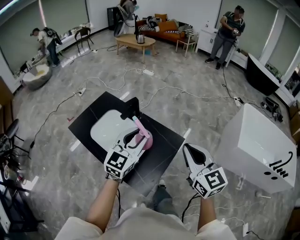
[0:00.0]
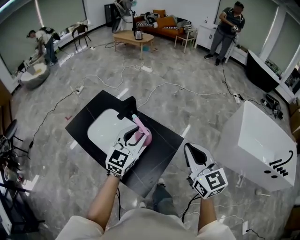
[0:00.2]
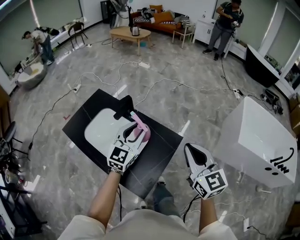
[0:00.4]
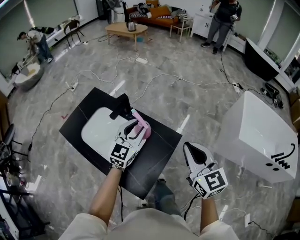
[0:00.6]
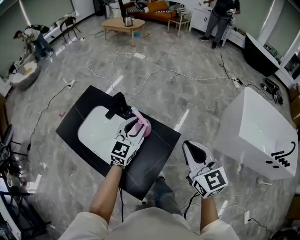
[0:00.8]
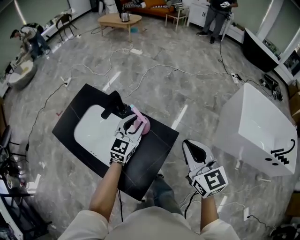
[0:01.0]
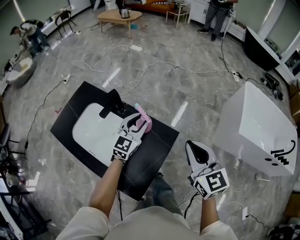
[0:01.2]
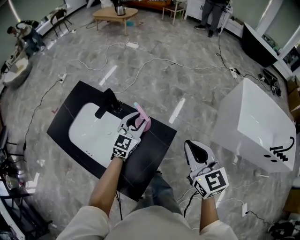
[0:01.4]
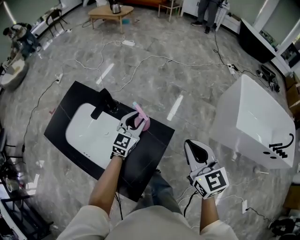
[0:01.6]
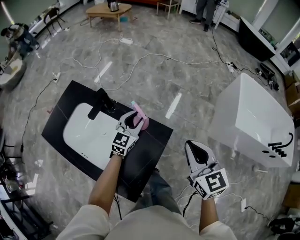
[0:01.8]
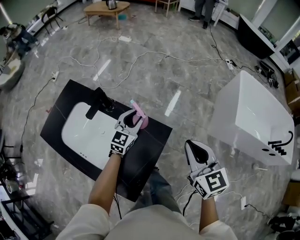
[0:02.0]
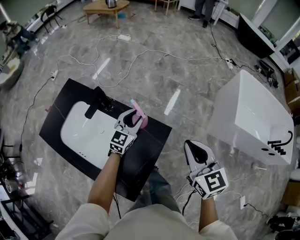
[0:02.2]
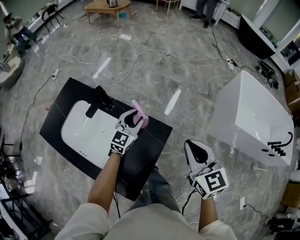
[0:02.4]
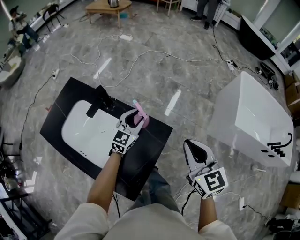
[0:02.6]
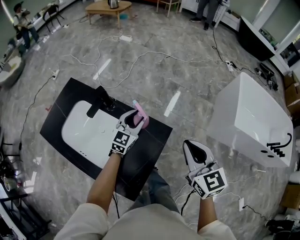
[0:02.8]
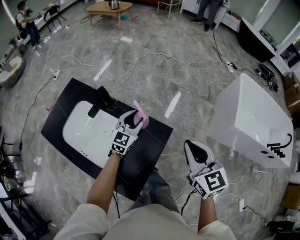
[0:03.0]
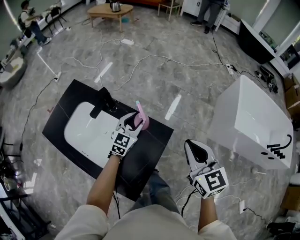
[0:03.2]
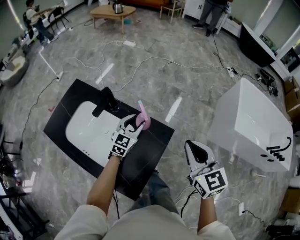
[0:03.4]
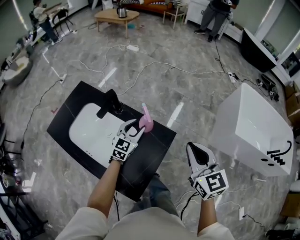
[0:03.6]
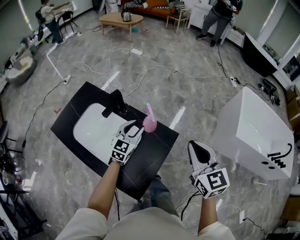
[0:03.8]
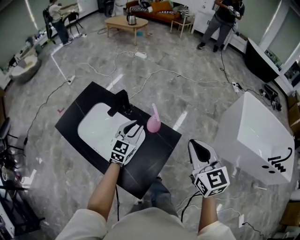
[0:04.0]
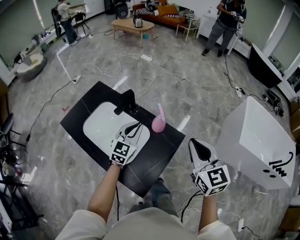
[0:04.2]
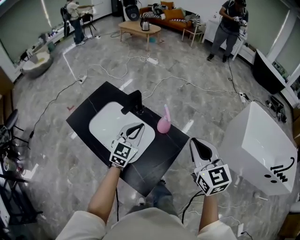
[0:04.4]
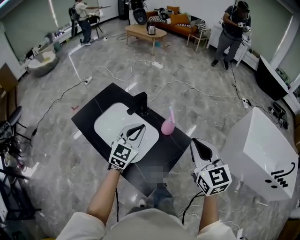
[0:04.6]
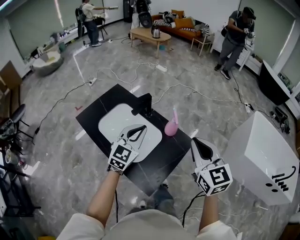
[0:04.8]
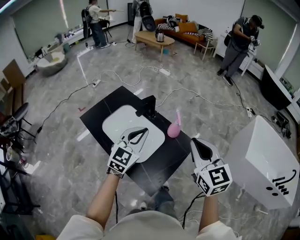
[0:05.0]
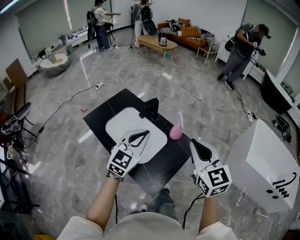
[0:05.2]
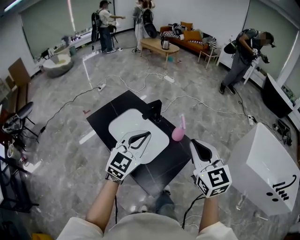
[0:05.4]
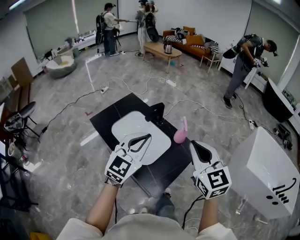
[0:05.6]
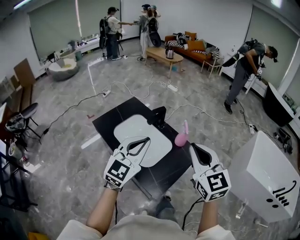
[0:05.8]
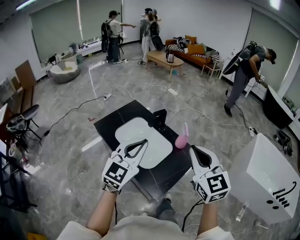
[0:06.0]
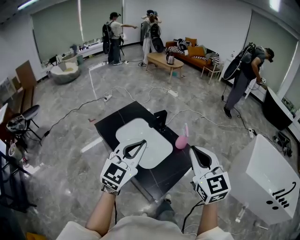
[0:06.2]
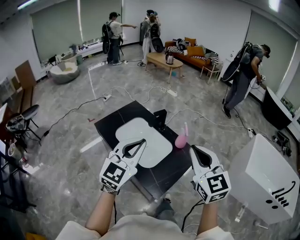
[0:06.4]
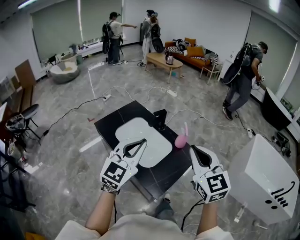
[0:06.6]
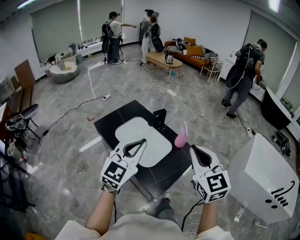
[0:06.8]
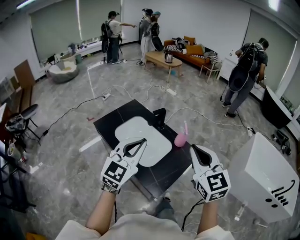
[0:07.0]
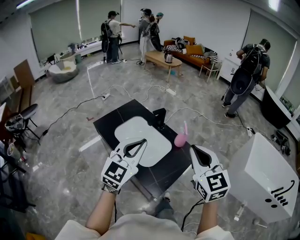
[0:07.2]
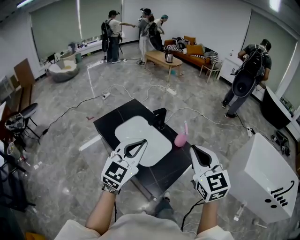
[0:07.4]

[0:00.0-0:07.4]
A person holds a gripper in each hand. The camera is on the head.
0:00.0 to 0:01.4: The right gripper travels forward, downward and to the right by about 15 cm. The left gripper moves forward and downward, roughly 25 cm.
0:01.4 to 0:03.0: The left gripper goes roughly 5 cm downward.
0:03.0 to 0:04.4: The right gripper travels to the left, upward and backward by approximately 10 cm; the left gripper travels backward, upward and to the left by about 20 cm, and closes its fingers.
0:04.4 to 0:06.0: The left gripper moves backward, upward and to the left, approximately 30 cm. Meanwhile the right gripper goes about 20 cm backward, to the left and upward.
0:06.0 to 0:07.4: The grippers stay close to where they were, moving slightly.

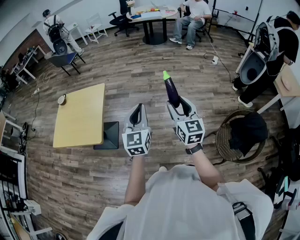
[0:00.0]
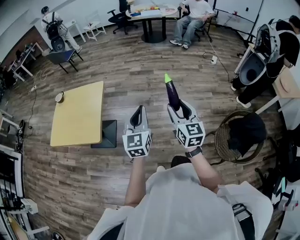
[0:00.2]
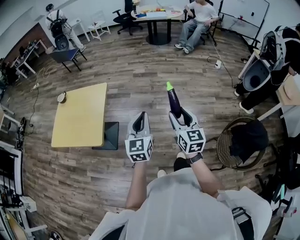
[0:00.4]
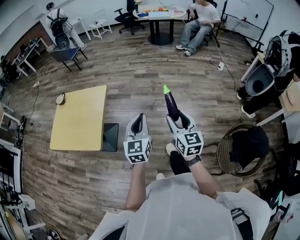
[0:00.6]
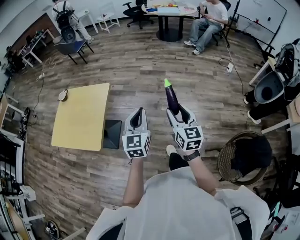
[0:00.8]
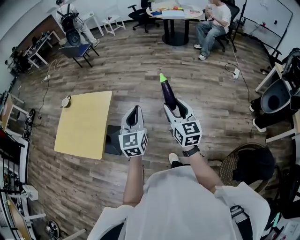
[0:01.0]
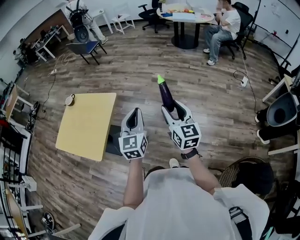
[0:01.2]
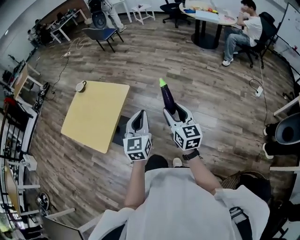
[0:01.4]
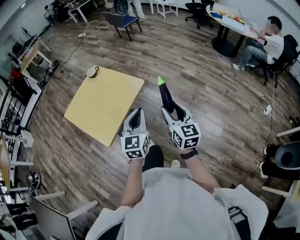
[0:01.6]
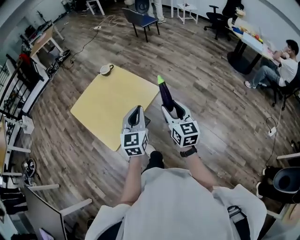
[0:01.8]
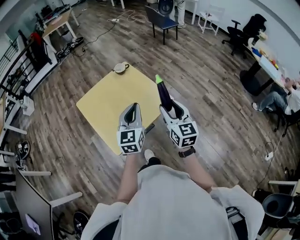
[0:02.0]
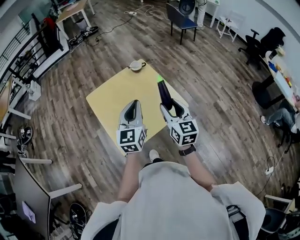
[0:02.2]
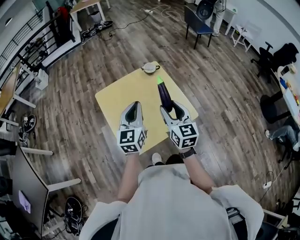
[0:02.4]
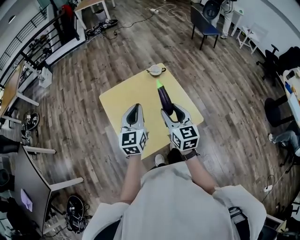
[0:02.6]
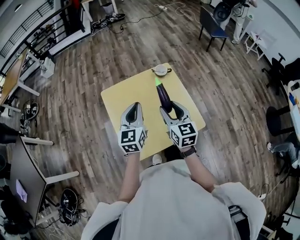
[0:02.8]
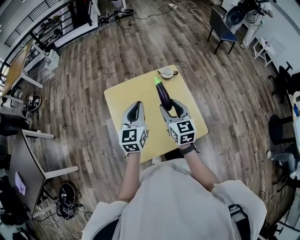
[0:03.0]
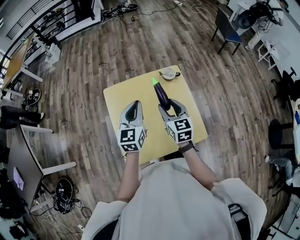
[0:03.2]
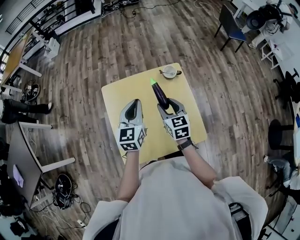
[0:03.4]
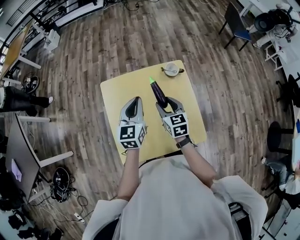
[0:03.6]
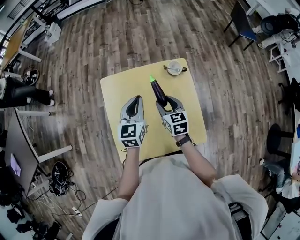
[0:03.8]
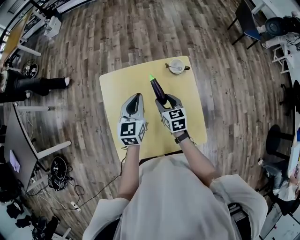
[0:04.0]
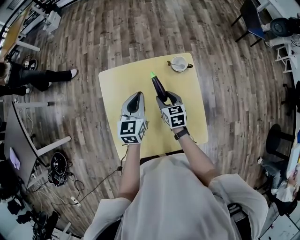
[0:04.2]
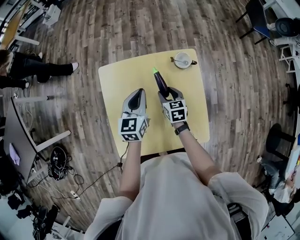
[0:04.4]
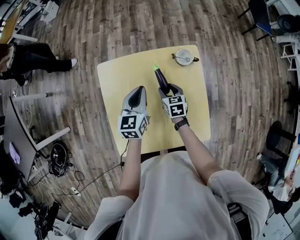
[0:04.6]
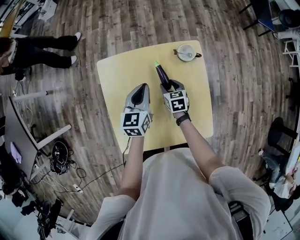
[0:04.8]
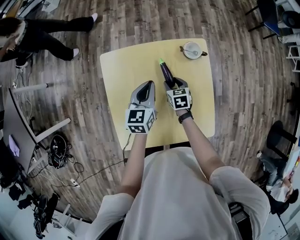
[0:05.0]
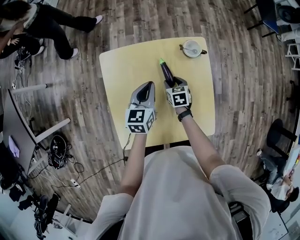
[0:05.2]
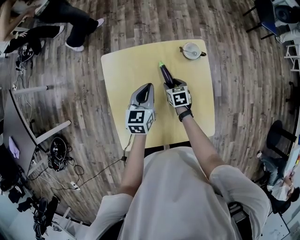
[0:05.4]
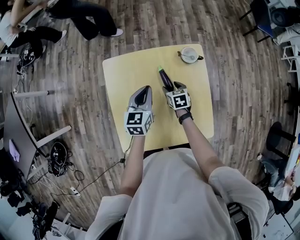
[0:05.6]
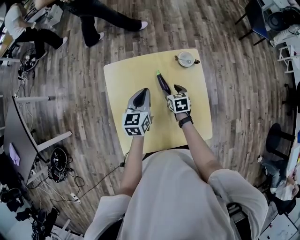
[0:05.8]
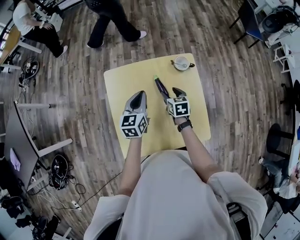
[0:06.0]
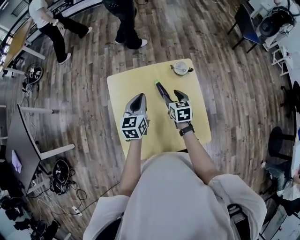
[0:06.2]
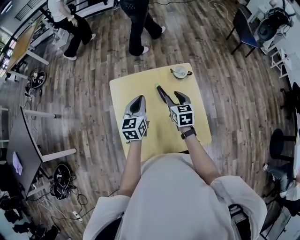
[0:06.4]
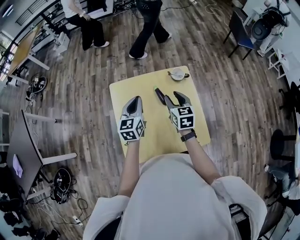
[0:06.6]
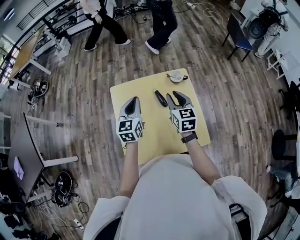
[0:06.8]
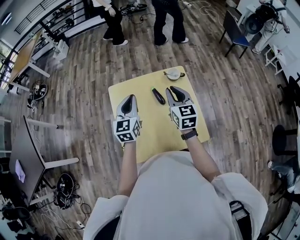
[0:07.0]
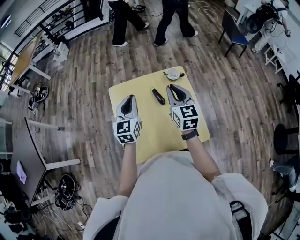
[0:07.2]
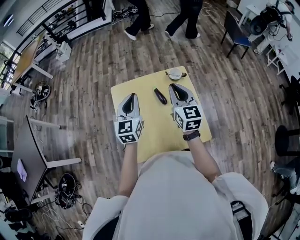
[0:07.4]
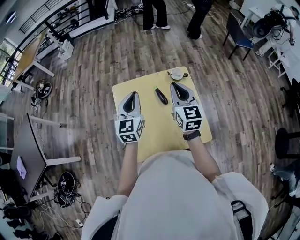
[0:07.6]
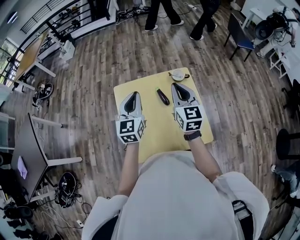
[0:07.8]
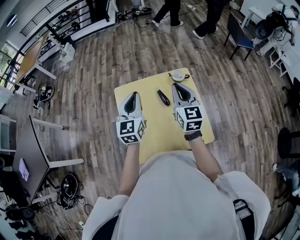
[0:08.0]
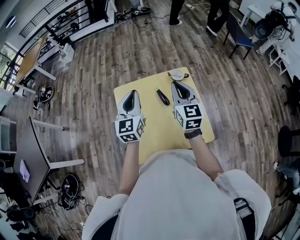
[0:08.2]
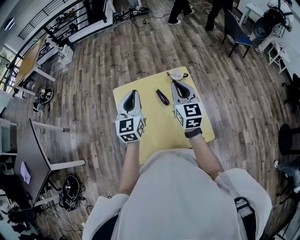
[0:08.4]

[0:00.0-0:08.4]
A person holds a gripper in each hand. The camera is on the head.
0:00.0 to 0:01.4: The right gripper shifts by about 30 cm, and swivels some 30 degrees; the left gripper shifts by about 25 cm, and rotates about 20 degrees.
0:01.4 to 0:02.8: Both grippers are carried roughly 60 cm. The left gripper rotates approximately 50 degrees; the right gripper rotates some 50 degrees.
0:02.8 to 0:04.2: The left gripper goes about 20 cm forward and downward, while the right gripper moves downward and forward, roughly 25 cm, and swivels approximately 30 degrees.
0:04.2 to 0:05.6: The left gripper goes some 5 cm downward; the right gripper is displaced downward by approximately 10 cm.
0:05.6 to 0:07.0: The left gripper moves upward, roughly 15 cm, while the right gripper travels upward by some 30 cm, tips its fingers upward by some 40 degrees, and closes.
0:07.0 to 0:08.4: The two grippers go some 5 cm upward.

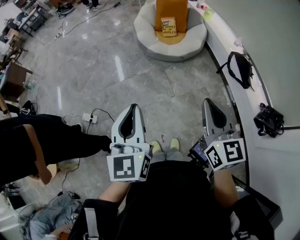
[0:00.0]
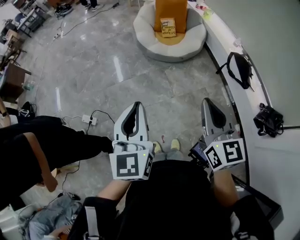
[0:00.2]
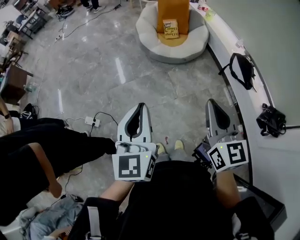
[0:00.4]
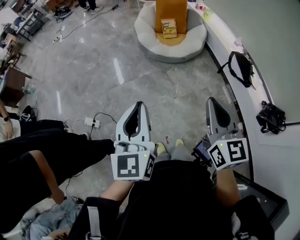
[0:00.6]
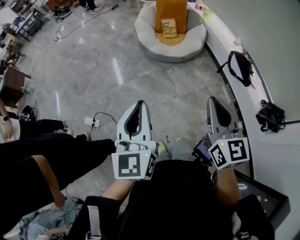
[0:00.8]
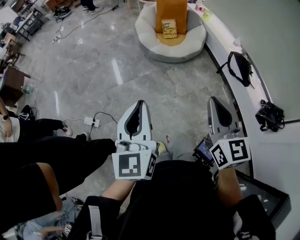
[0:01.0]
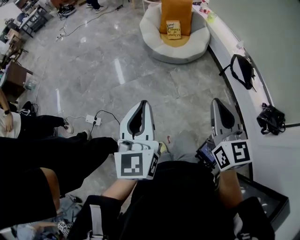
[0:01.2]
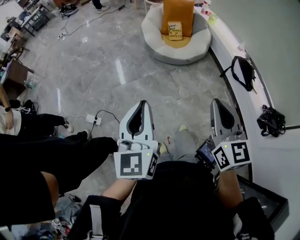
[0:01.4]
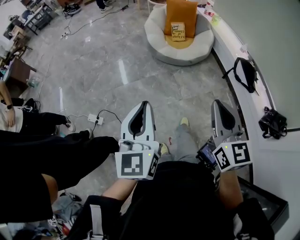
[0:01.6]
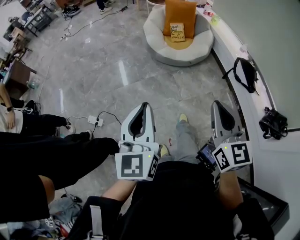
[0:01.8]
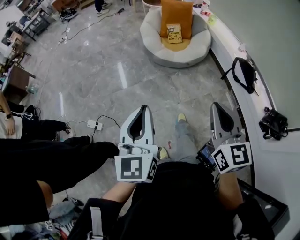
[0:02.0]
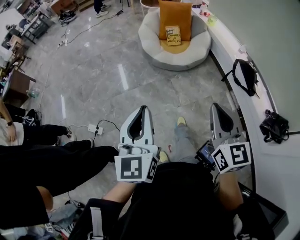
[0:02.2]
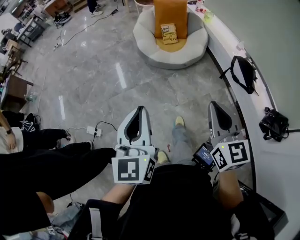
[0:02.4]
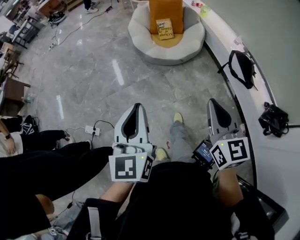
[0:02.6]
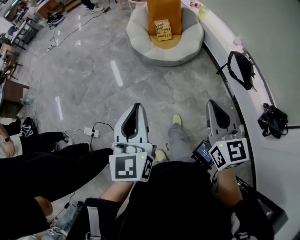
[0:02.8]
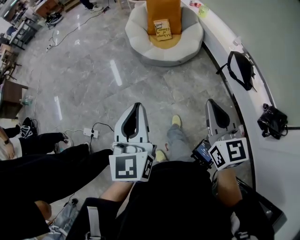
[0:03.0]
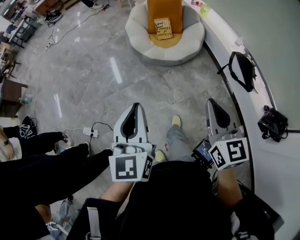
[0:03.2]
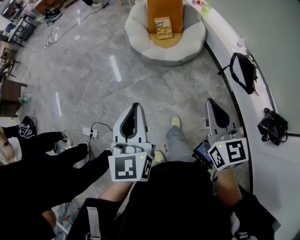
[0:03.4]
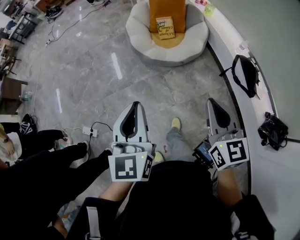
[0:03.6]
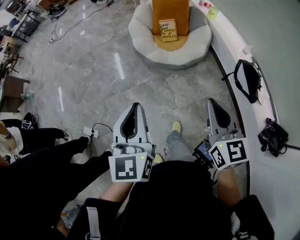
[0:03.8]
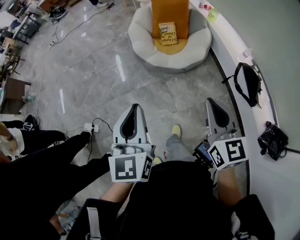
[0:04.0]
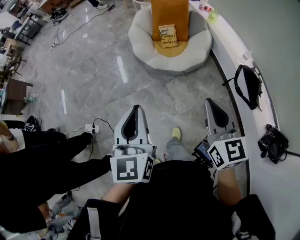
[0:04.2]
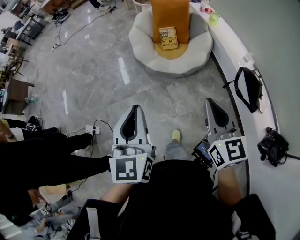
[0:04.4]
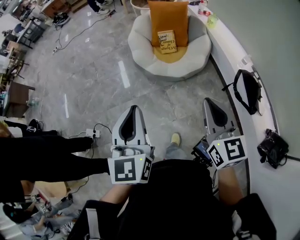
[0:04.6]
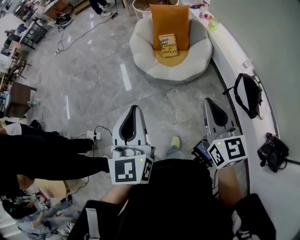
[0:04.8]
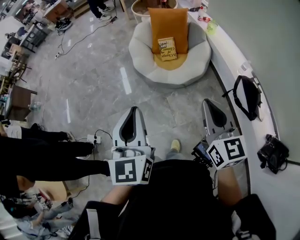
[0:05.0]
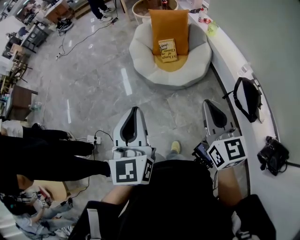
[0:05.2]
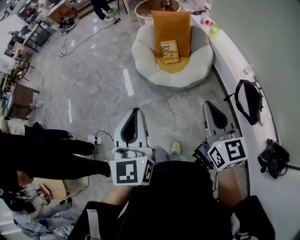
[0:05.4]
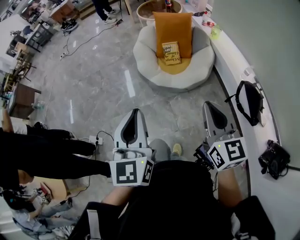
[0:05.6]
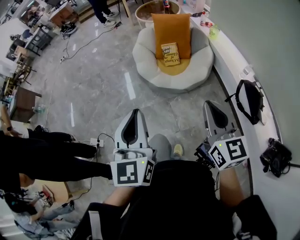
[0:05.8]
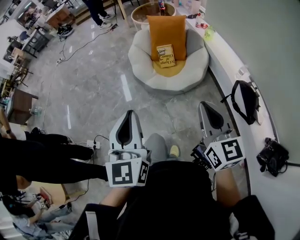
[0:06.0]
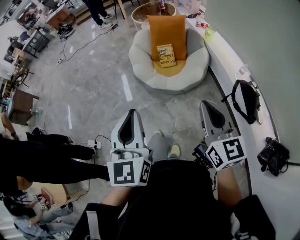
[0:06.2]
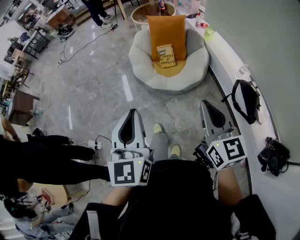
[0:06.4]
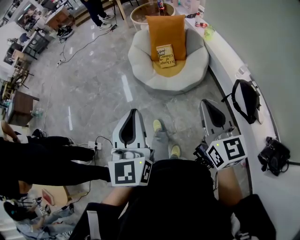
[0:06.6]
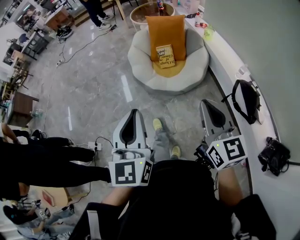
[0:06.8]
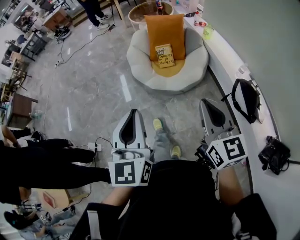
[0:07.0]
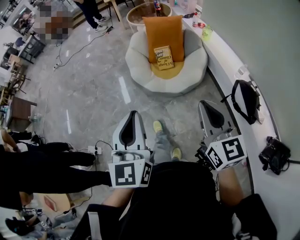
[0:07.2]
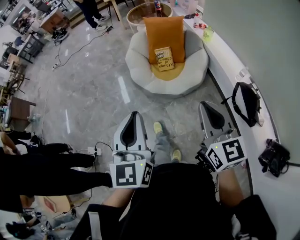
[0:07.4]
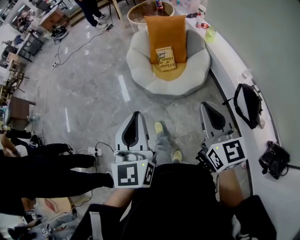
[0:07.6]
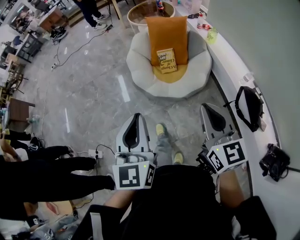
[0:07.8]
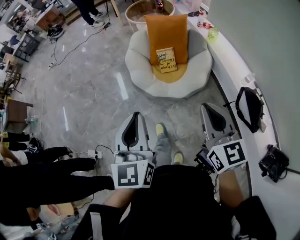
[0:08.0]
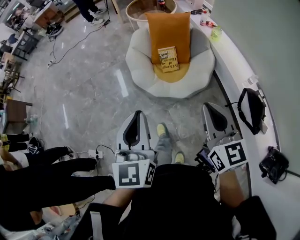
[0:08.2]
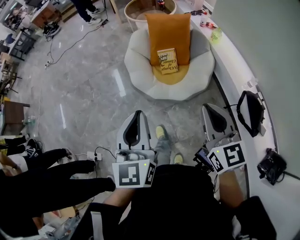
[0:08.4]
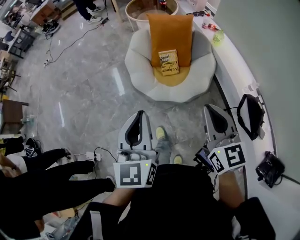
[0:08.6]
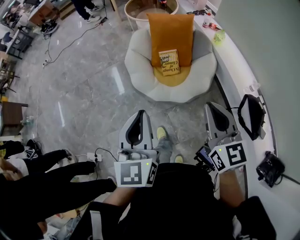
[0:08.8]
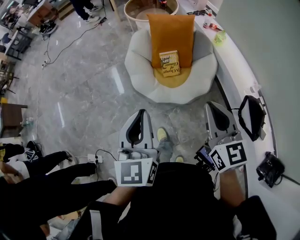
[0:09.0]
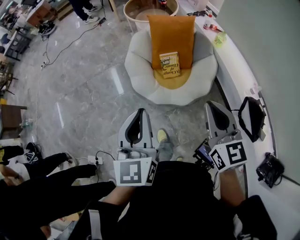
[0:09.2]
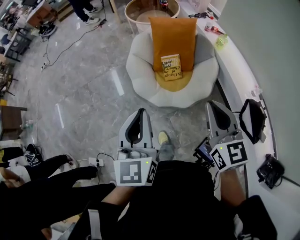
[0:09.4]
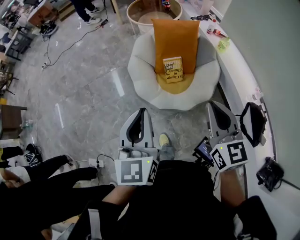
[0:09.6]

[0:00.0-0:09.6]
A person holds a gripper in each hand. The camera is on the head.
0:00.0 to 0:01.6: Both grippers travel together to the left, roughly 5 cm.
0:01.6 to 0:03.2: Both grippers travel together forward and to the right, approximately 20 cm.
0:03.2 to 0:04.8: The two grippers go some 20 cm forward and to the right.
0:04.8 to 0:06.4: The grippers make only small movements.
0:06.4 to 0:08.0: The grippers both shift forward by approximately 15 cm.
0:08.0 to 0:09.6: Both grippers travel together forward, roughly 20 cm.
